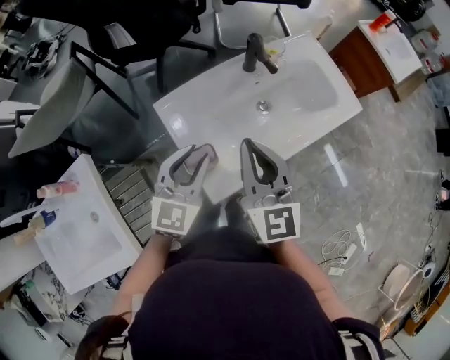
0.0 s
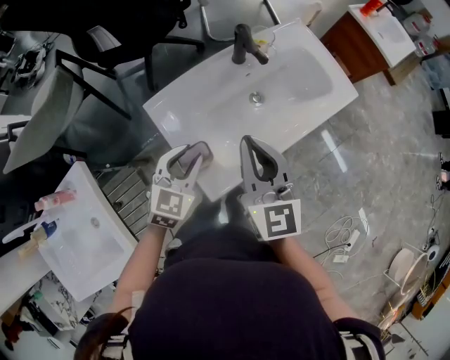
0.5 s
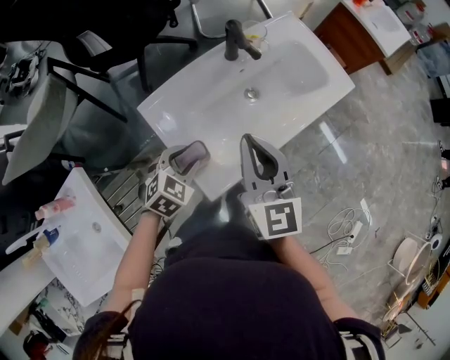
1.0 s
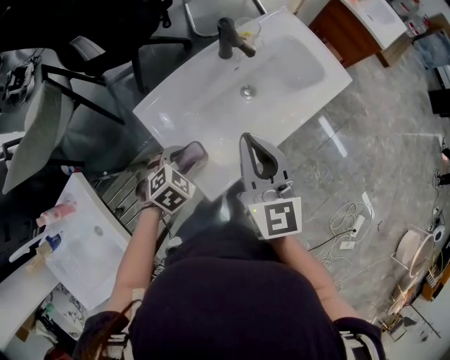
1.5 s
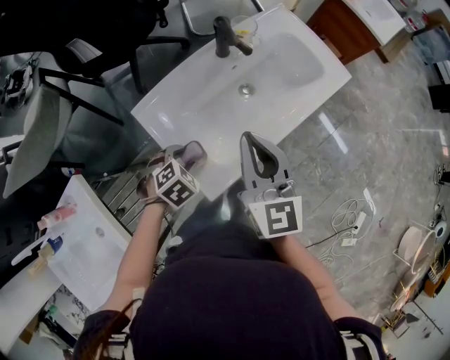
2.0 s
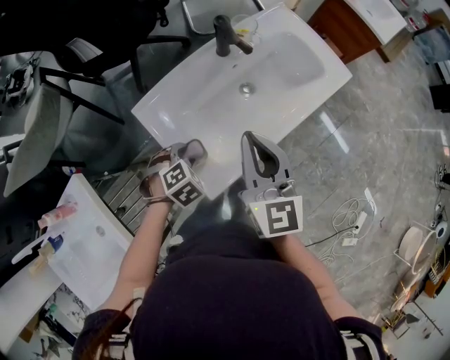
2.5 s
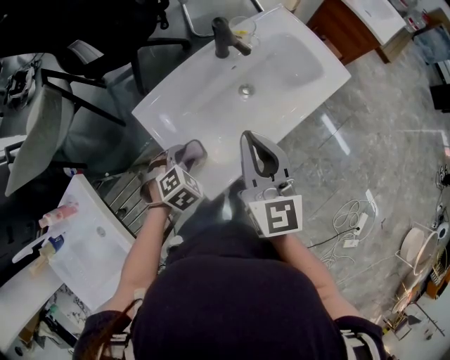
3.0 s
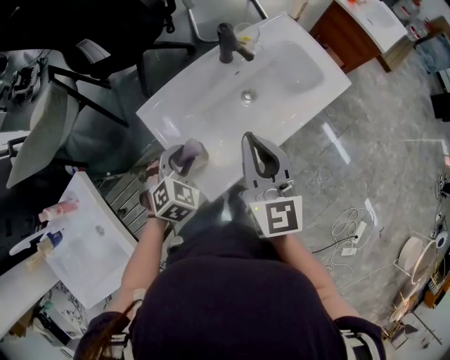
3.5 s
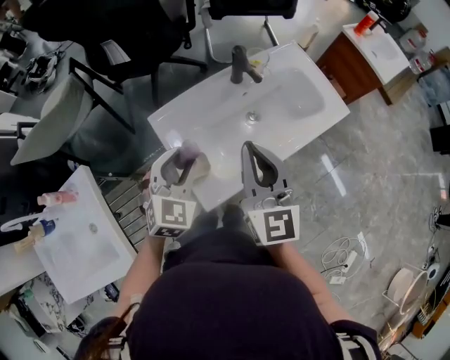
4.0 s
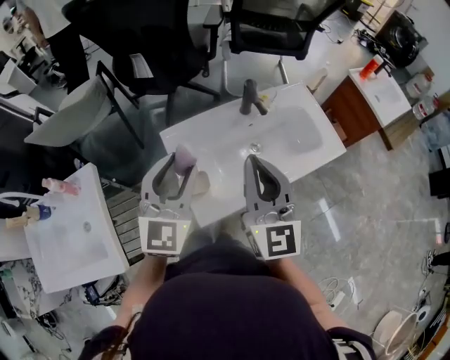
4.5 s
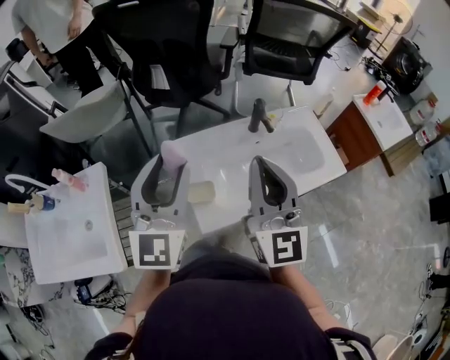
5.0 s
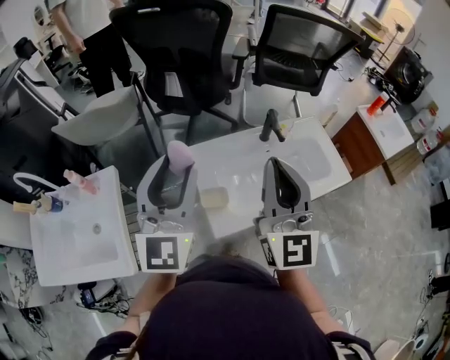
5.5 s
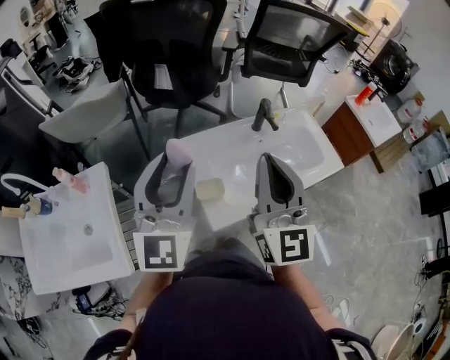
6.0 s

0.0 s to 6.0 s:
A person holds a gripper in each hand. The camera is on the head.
0.0 to 2.0 s: The left gripper shifts roughly 20 cm downward, and points its fingers roughly 50 degrees further downward.
2.0 to 4.0 s: The left gripper moves upward, roughly 15 cm, and points its fingers about 40 degrees further upward.
4.0 to 6.0 s: The right gripper is displaced upward and to the left by some 15 cm, and rotates approximately 20 degrees, while the left gripper travels upward by about 25 cm, and tips its fingers upward by some 40 degrees.

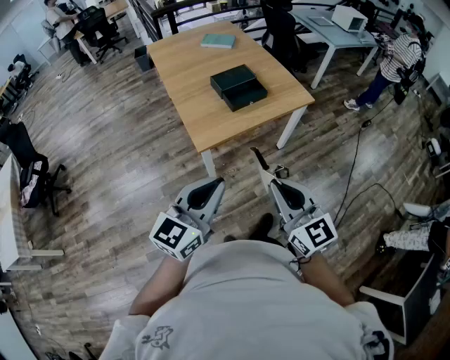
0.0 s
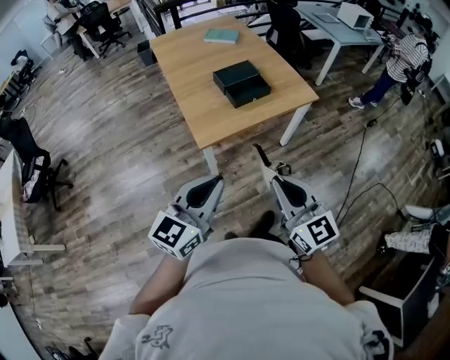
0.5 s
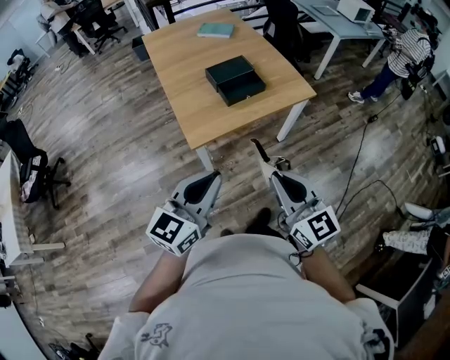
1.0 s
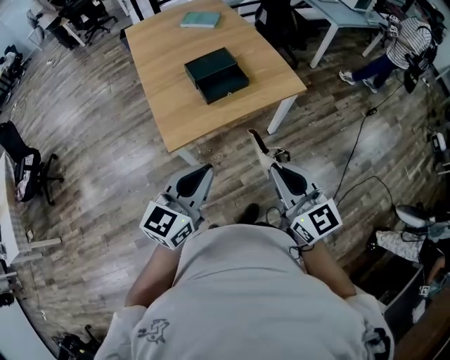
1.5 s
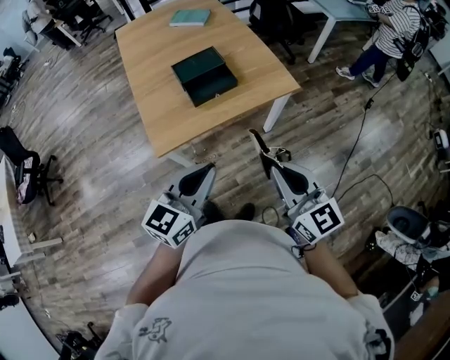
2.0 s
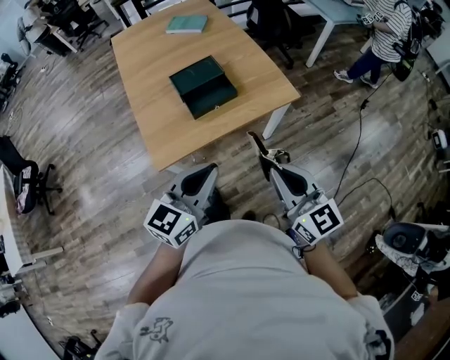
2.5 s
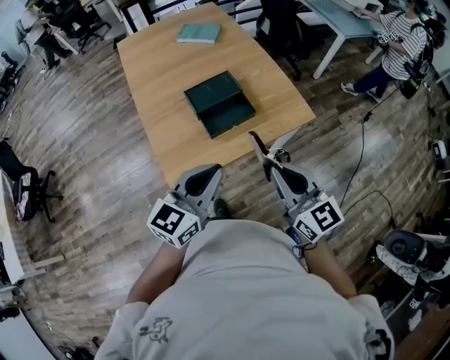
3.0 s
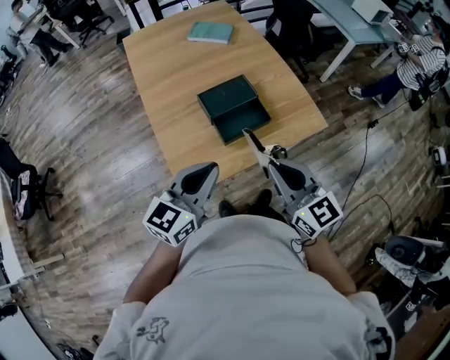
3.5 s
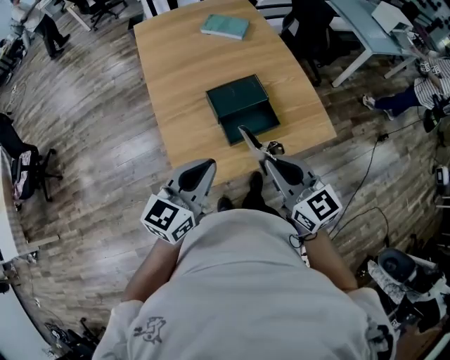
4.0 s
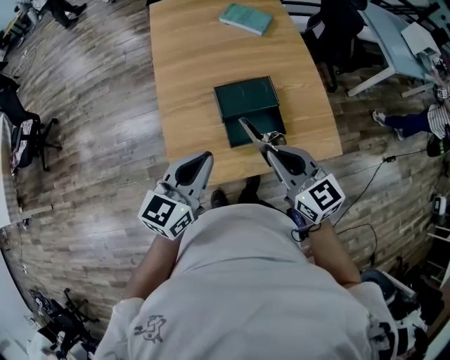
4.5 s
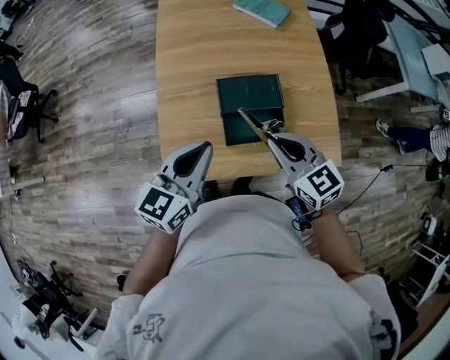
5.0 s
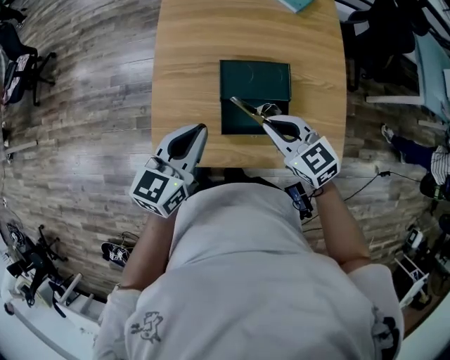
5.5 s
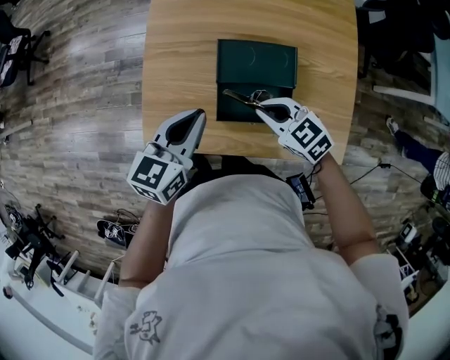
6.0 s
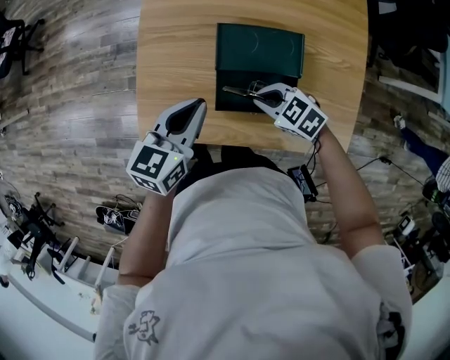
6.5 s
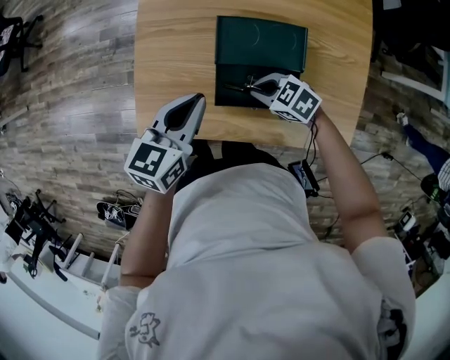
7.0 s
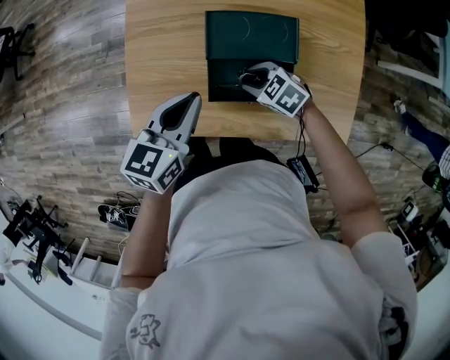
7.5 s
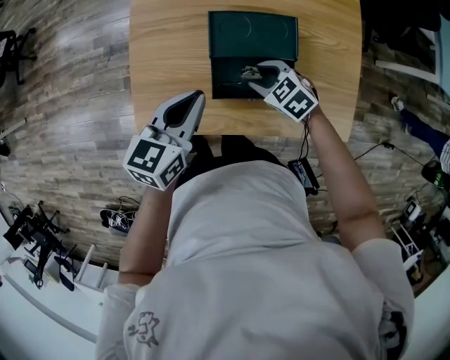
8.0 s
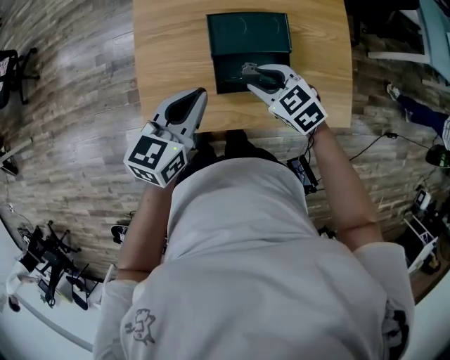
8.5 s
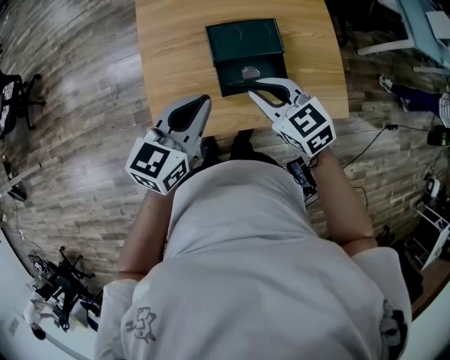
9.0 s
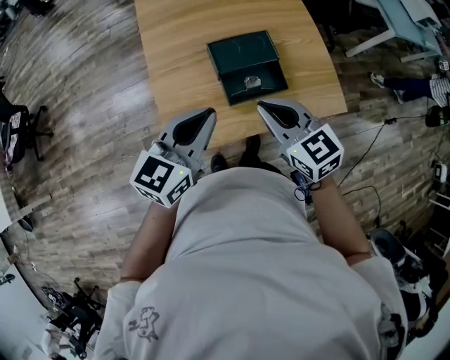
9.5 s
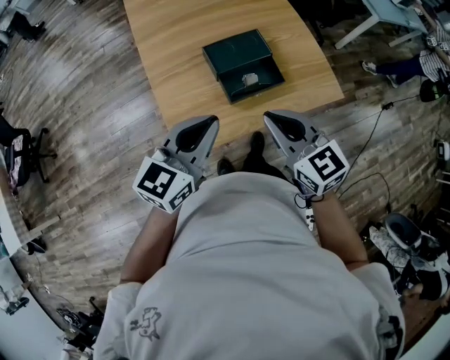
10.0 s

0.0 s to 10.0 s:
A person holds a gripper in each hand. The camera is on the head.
0.0 to 2.0 s: The right gripper is displaced to the right and forward by about 25 cm, while the left gripper is displaced forward and to the right by about 25 cm.
2.0 to 4.0 s: Both grippers travel together forward and to the left, roughly 30 cm.
4.0 to 6.0 s: The right gripper goes roughly 20 cm downward, and turns by approximately 50 degrees. Meanwhile the left gripper moves roughly 20 cm, and swivels roughly 30 degrees.
6.0 to 8.0 s: The right gripper shifts roughly 10 cm downward, and opens up.
8.0 to 10.0 s: The left gripper heads upward, covering some 15 cm, and changes its angle by roughly 40 degrees, while the right gripper is displaced upward by approximately 30 cm, angles its fingers upward, by roughly 40 degrees, and closes.

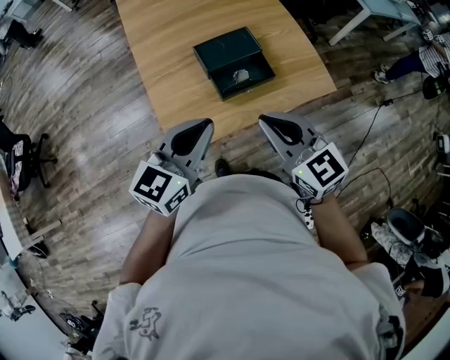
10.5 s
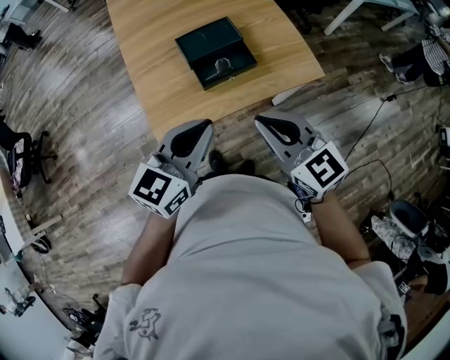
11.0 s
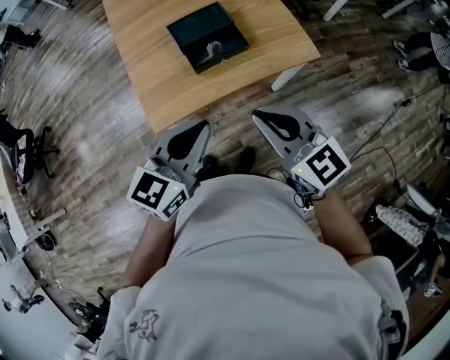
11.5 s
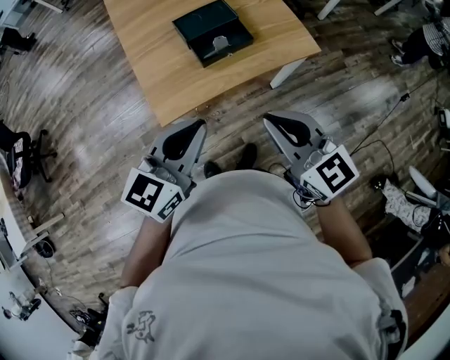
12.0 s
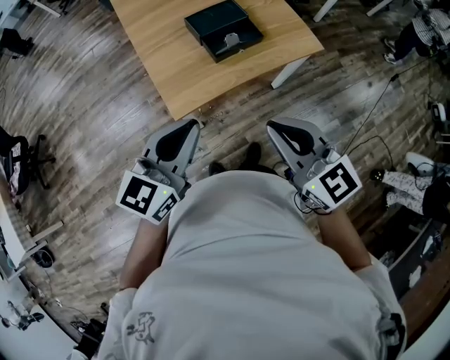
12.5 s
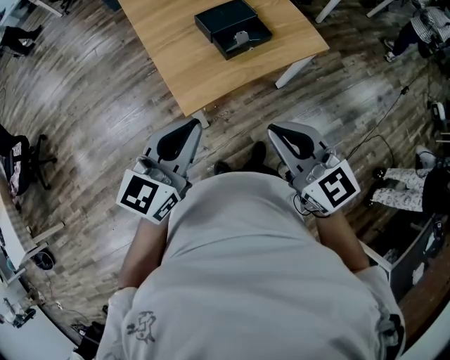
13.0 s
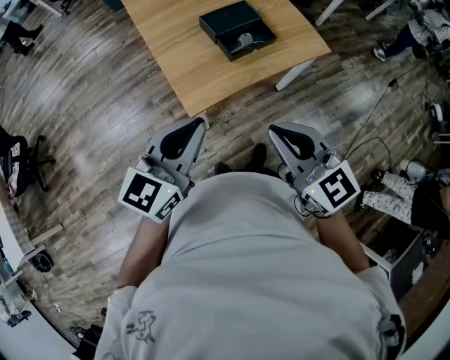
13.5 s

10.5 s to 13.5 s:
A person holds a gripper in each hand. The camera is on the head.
10.5 to 12.0 s: The grippers both shift backward by about 15 cm.
12.0 to 13.5 s: The left gripper heads to the left, covering about 15 cm; the right gripper is displaced to the left and backward by roughly 15 cm.

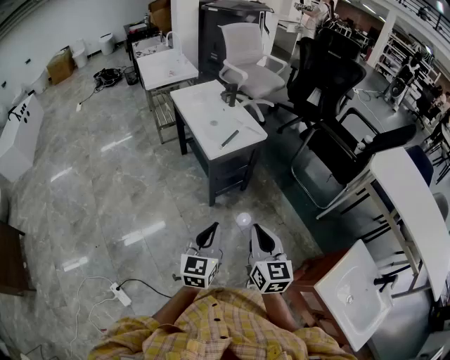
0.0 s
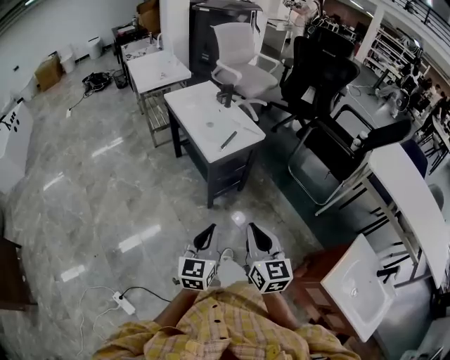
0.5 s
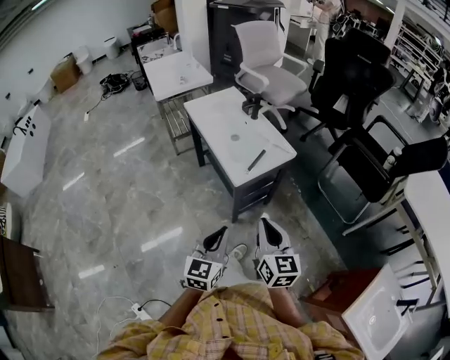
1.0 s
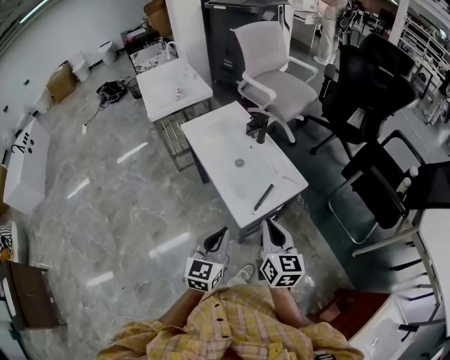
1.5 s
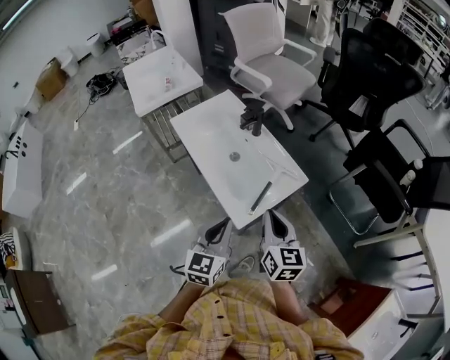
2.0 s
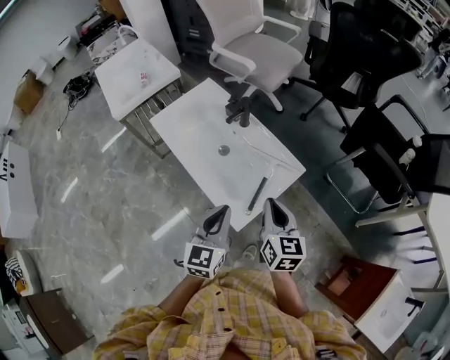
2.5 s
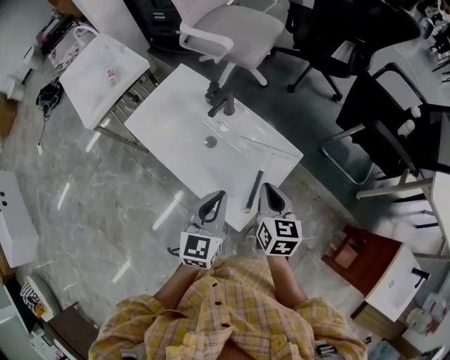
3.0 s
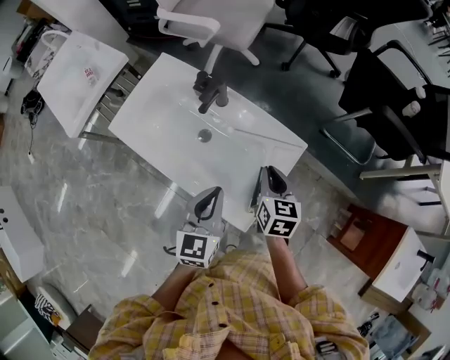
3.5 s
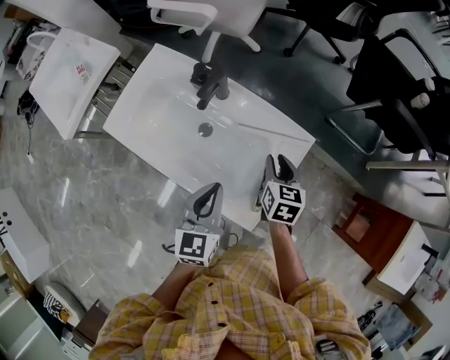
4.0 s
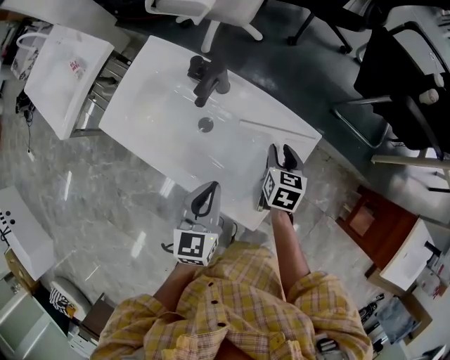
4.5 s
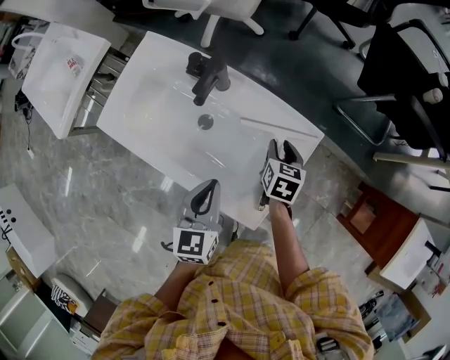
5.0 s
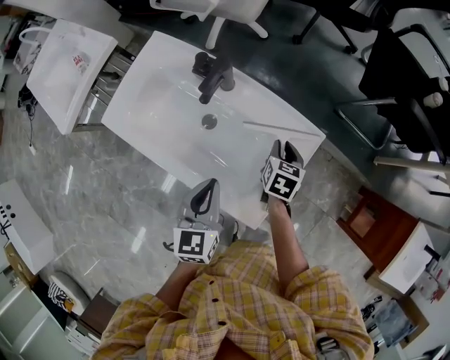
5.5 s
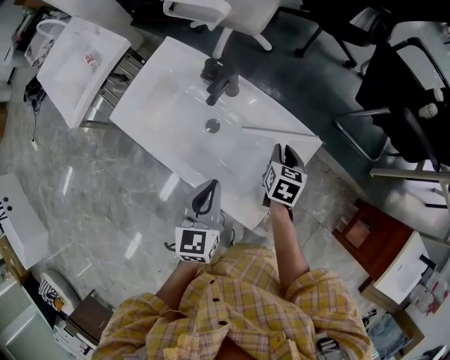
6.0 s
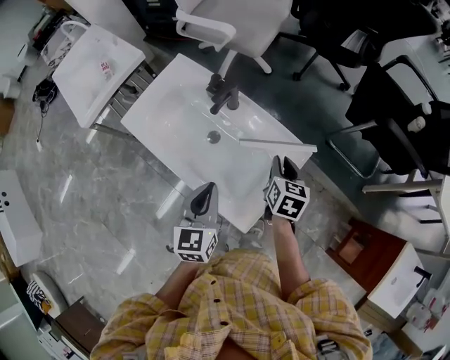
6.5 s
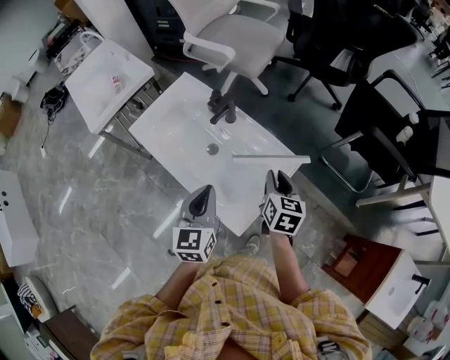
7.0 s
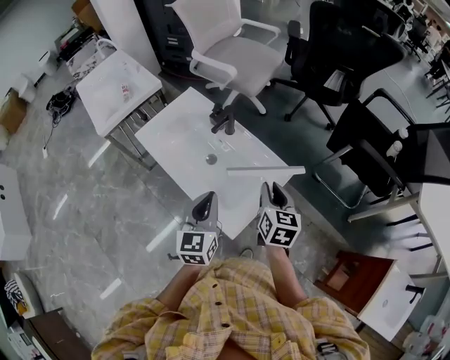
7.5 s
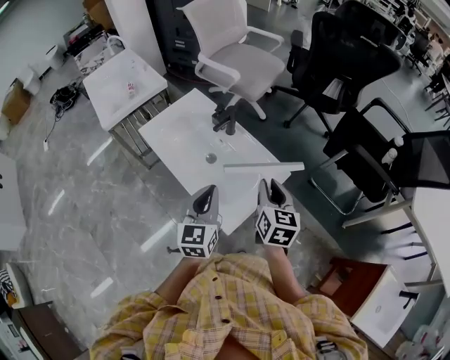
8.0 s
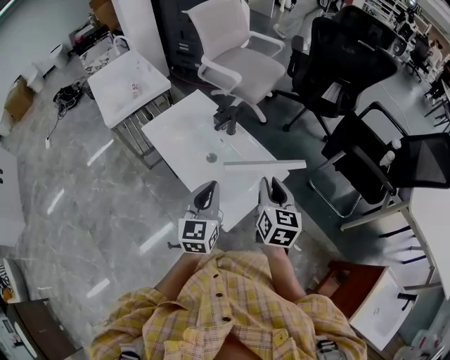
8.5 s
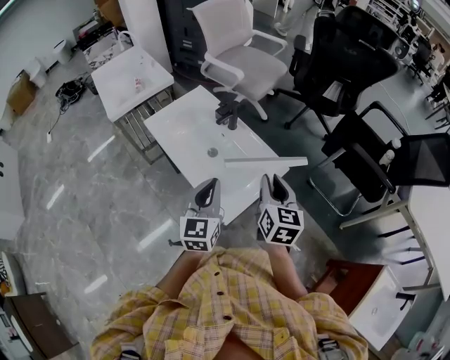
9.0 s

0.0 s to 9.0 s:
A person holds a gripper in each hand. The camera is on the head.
0.0 to 2.0 s: The pair of grippers is taken forward, about 40 cm.
2.0 to 4.5 s: The left gripper moves roughly 25 cm, and swivels some 20 degrees. Meanwhile the right gripper travels downward by approximately 25 cm, tilts its fingers roughly 30 degrees downward, and opens up.
4.5 to 7.0 s: Both grippers travel together upward, roughly 10 cm.
7.0 to 9.0 s: The left gripper heads backward and upward, covering about 10 cm; the right gripper moves upward and backward, approximately 15 cm.
